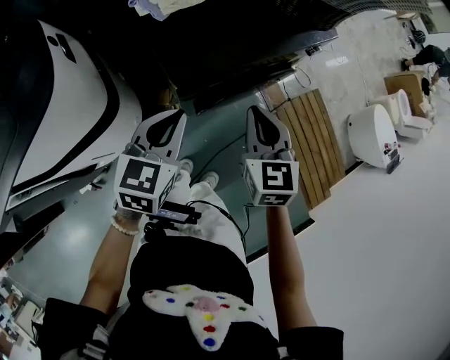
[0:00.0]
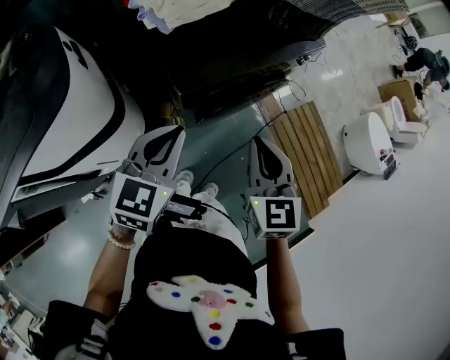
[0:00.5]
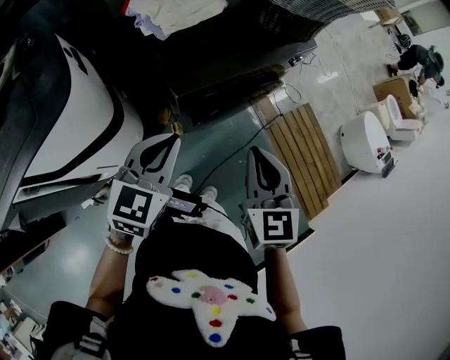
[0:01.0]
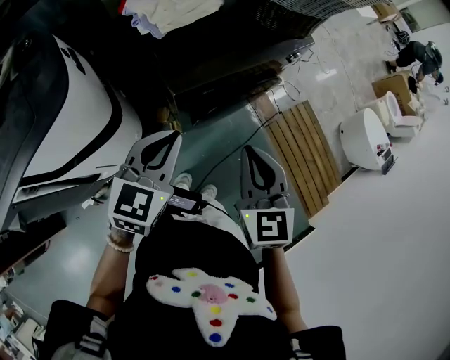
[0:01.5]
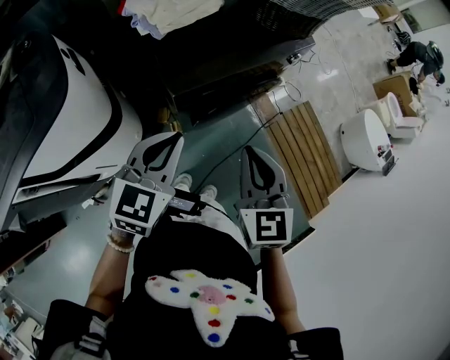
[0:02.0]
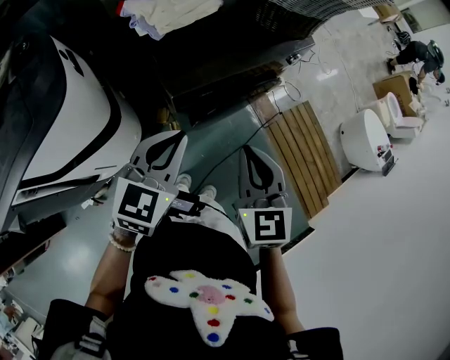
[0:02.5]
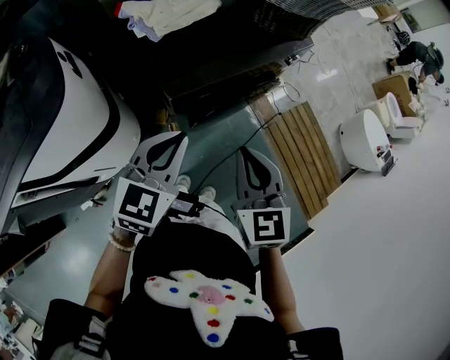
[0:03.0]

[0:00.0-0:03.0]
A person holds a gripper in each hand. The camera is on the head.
0:00.0 to 0:01.5: The right gripper is displaced backward and upward by about 15 cm. Meanwhile the left gripper goes approximately 10 cm upward and backward.
0:01.5 to 0:03.0: There are only small adjustments of the grippers.

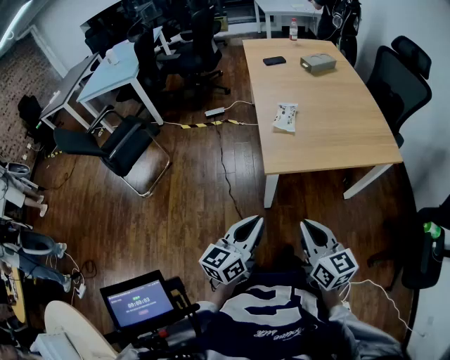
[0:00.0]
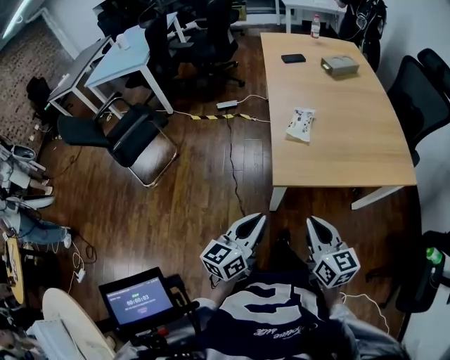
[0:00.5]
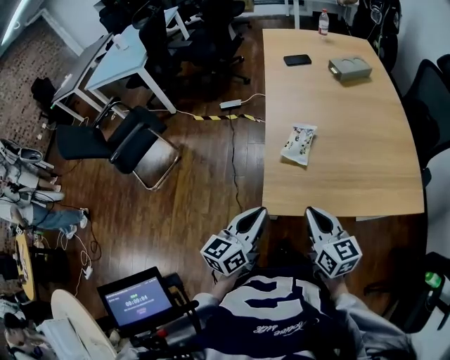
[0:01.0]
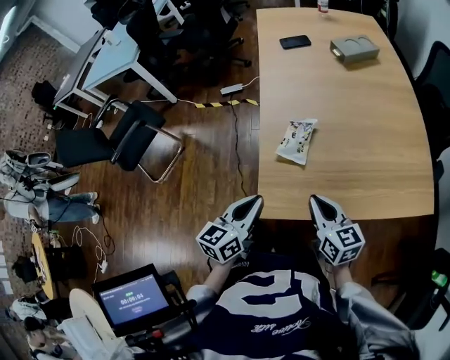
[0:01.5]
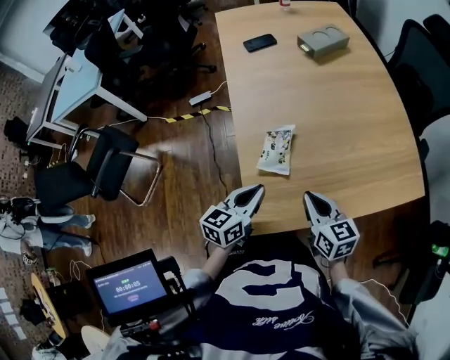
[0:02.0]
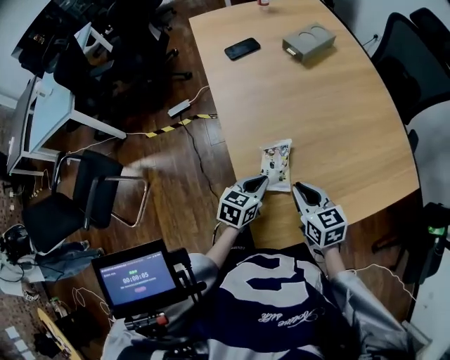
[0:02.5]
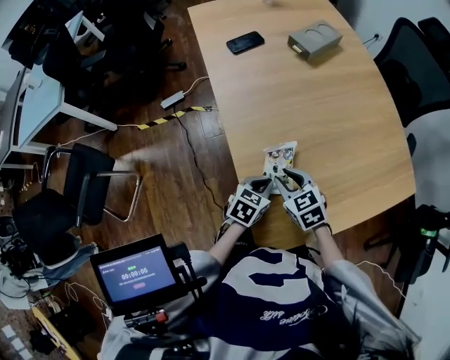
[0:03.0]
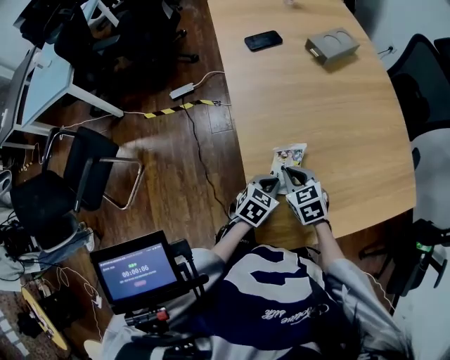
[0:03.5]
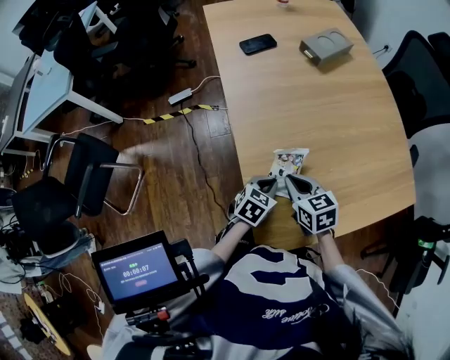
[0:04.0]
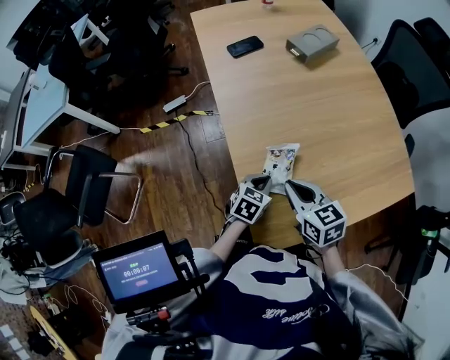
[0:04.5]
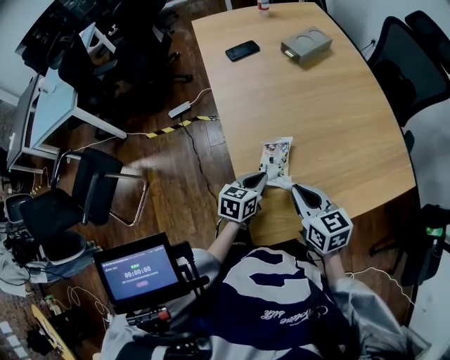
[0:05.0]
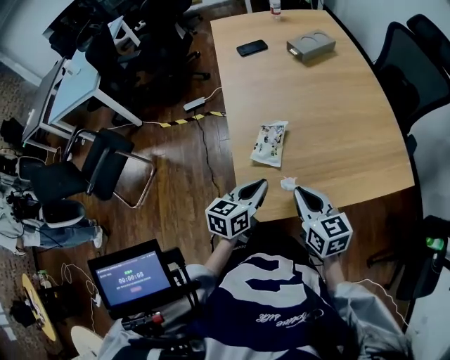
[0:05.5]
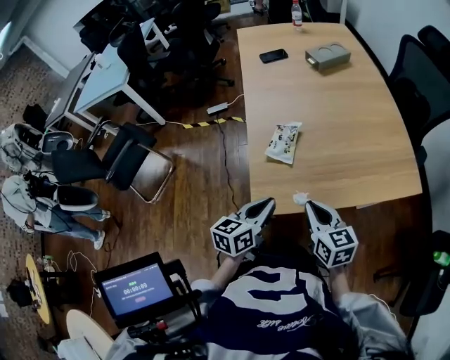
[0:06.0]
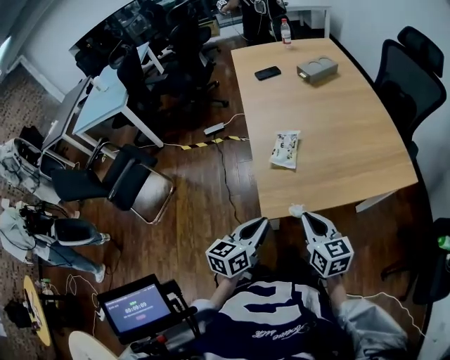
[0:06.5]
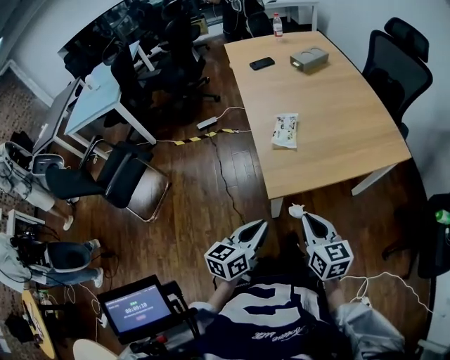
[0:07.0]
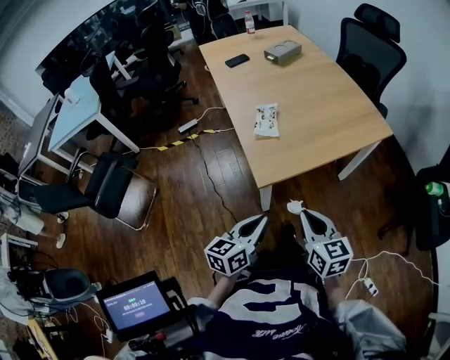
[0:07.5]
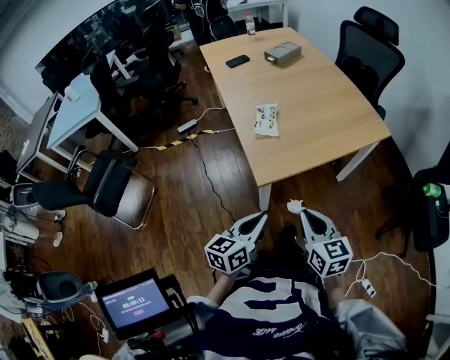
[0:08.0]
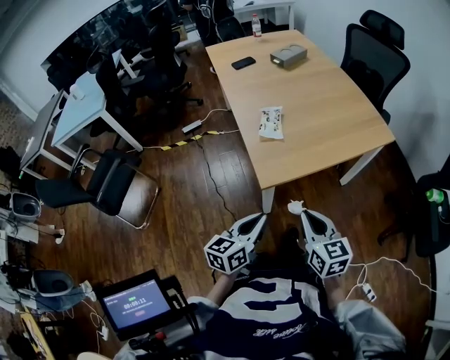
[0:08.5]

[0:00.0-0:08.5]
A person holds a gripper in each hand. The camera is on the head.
0:00.0 to 0:02.0: The two grippers travel together, forward, approximately 40 cm. The left gripper rotates about 20 degrees.
0:02.0 to 0:04.0: The left gripper moves downward and forward, about 15 cm, and turns by roughly 30 degrees. Meanwhile the right gripper heads forward and to the left, covering about 15 cm, and opens, then closes again.
0:04.0 to 0:06.5: The right gripper travels backward by approximately 30 cm. The left gripper moves backward and upward, approximately 35 cm, and rotates approximately 40 degrees.
0:06.5 to 0:08.5: The grippers both shift backward by some 15 cm.

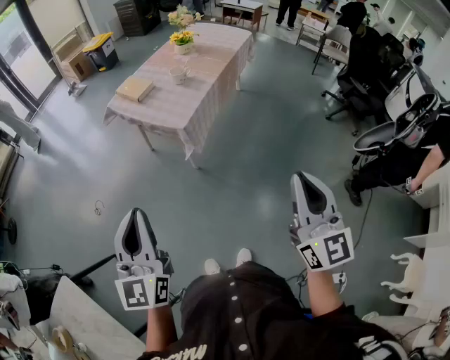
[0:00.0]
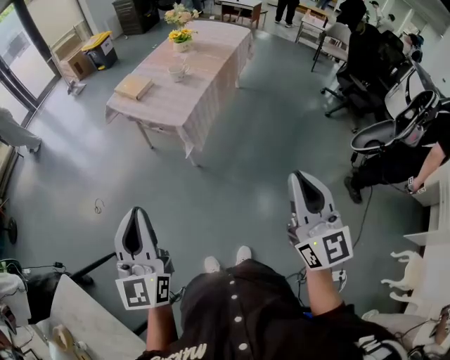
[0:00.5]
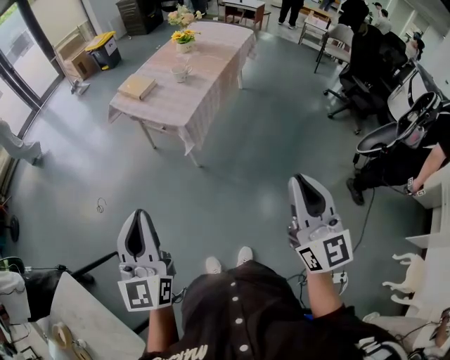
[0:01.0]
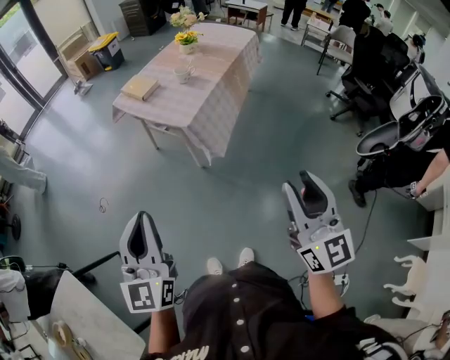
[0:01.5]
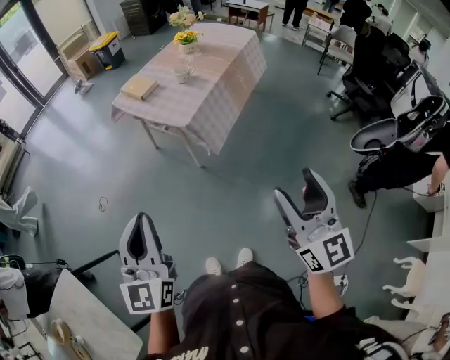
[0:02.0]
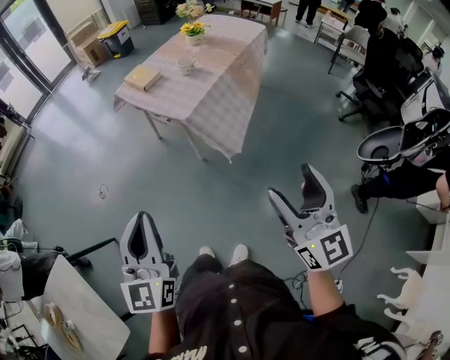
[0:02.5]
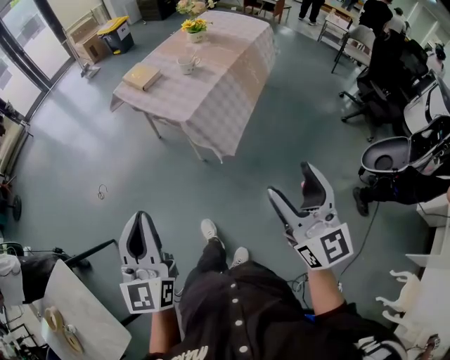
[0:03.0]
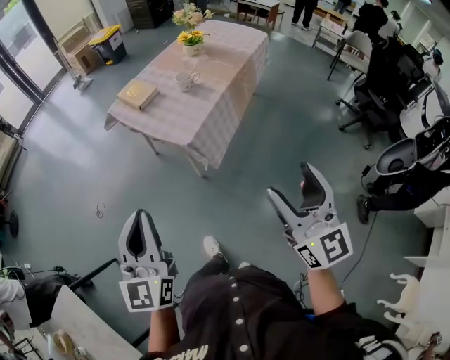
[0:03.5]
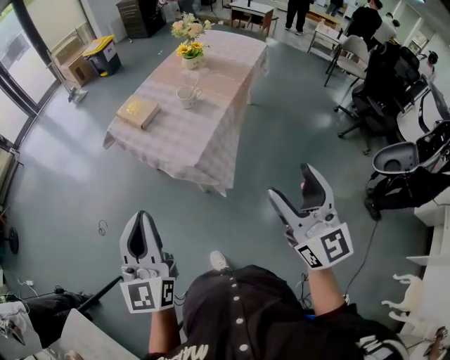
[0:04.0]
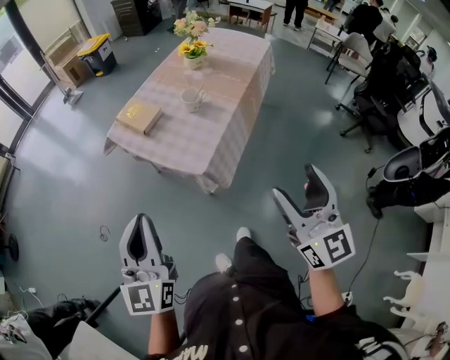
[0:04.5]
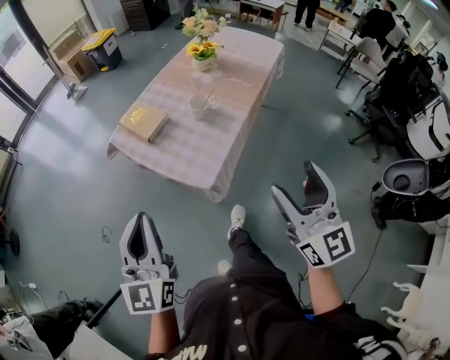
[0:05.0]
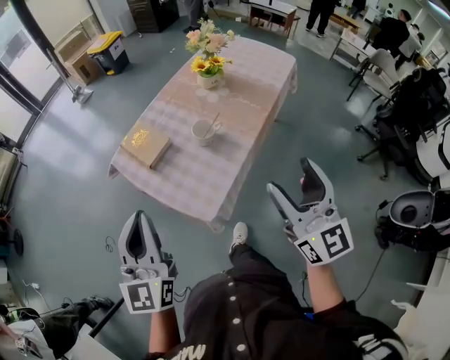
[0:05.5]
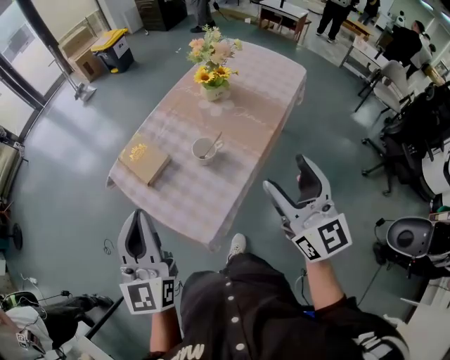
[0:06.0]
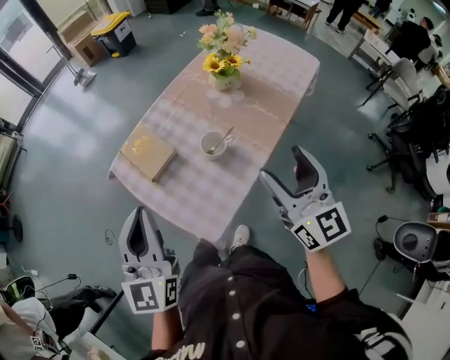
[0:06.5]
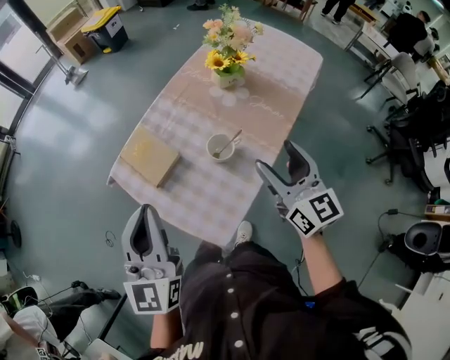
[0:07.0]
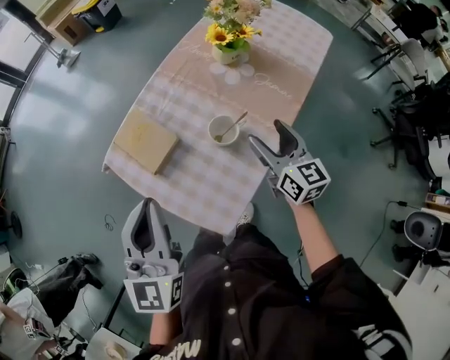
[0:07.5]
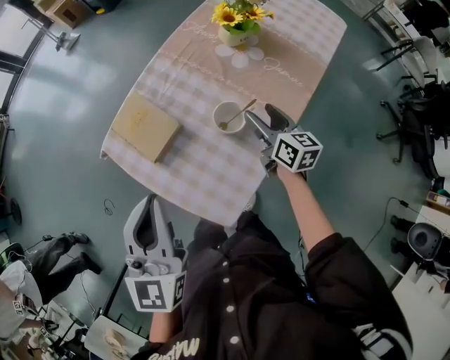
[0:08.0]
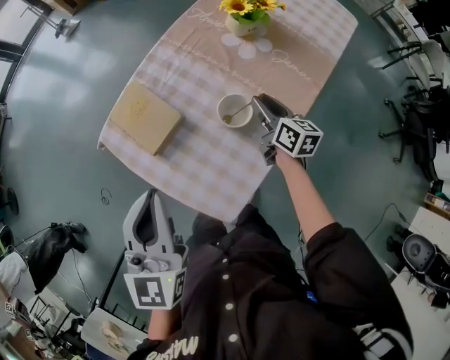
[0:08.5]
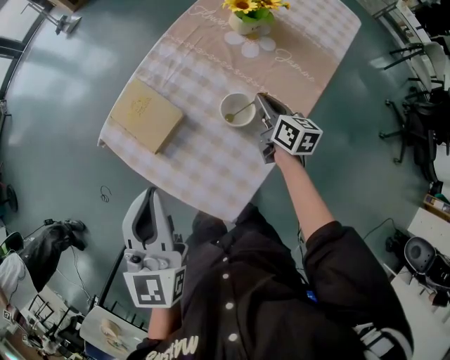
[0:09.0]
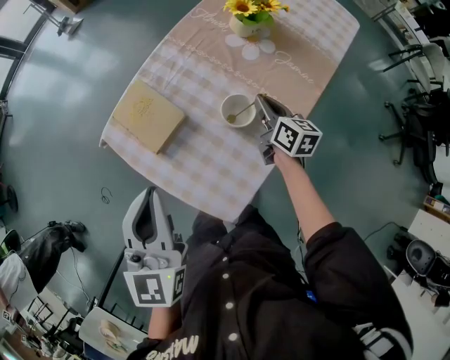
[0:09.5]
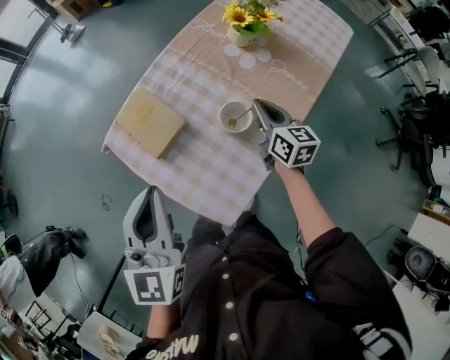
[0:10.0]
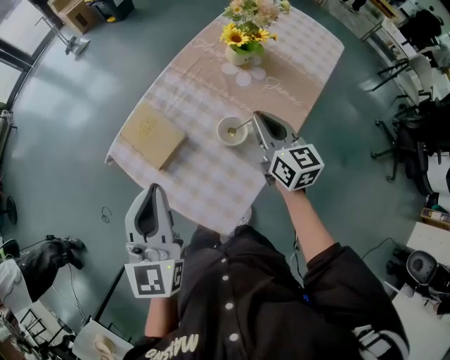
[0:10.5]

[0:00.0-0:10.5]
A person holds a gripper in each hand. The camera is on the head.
0:00.0 to 0:02.0: The right gripper opens up.
0:02.0 to 0:04.0: Both grippers move forward, approximately 25 cm.
0:04.0 to 0:06.5: Both grippers are carried forward, approximately 50 cm.
0:06.5 to 0:08.5: The right gripper is displaced downward and forward by approximately 35 cm, swivels some 40 degrees, and closes. Meanwhile the left gripper travels forward and downward by about 15 cm.
0:08.5 to 0:10.5: The right gripper shifts approximately 15 cm upward, changes its angle by approximately 20 degrees, and closes its fingers.

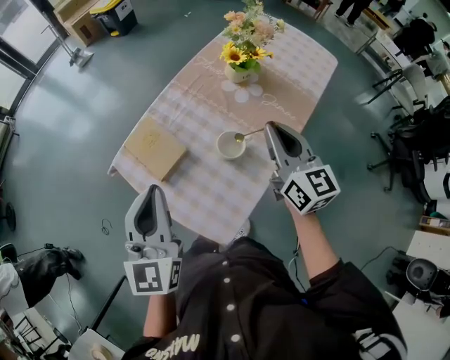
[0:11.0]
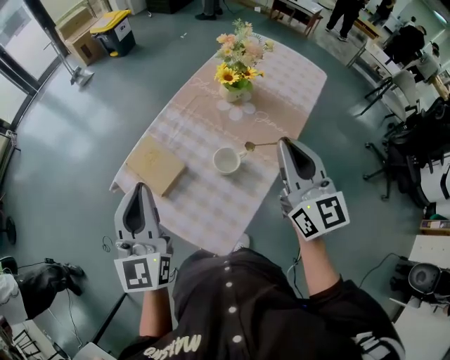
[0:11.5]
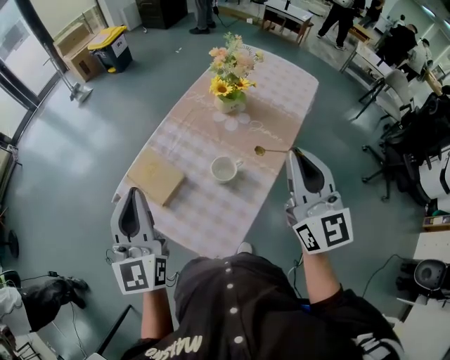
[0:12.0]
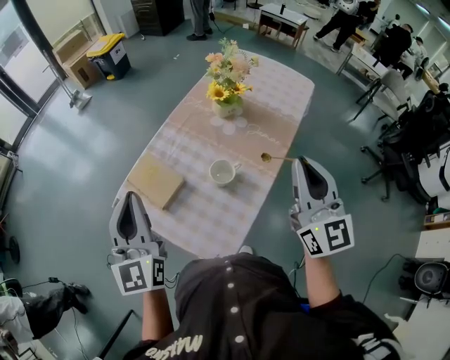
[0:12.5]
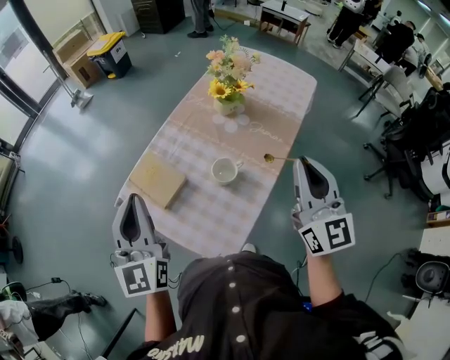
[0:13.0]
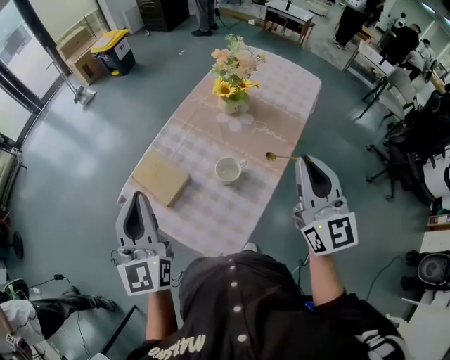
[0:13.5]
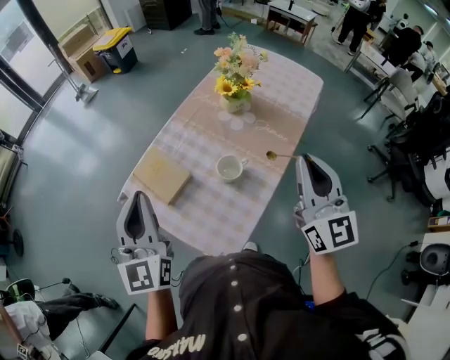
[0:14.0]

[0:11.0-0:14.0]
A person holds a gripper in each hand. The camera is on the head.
0:11.0 to 0:12.5: The left gripper shifts about 5 cm upward. Meanwhile the right gripper goes about 15 cm upward, backward and to the right, and rotates approximately 20 degrees.
0:12.5 to 0:14.0: The grippers make only small movements.

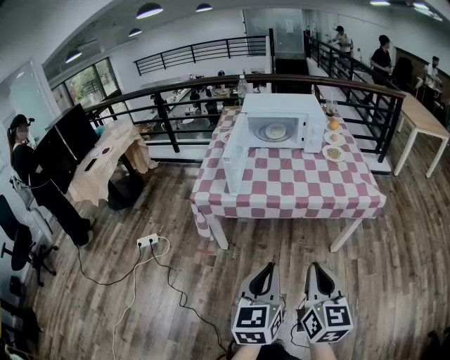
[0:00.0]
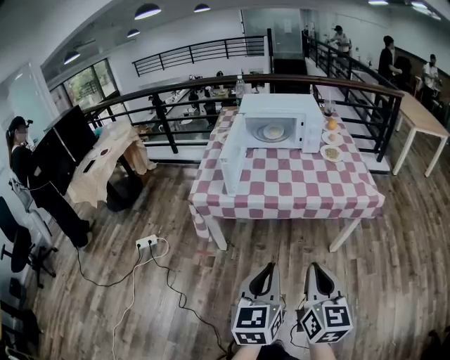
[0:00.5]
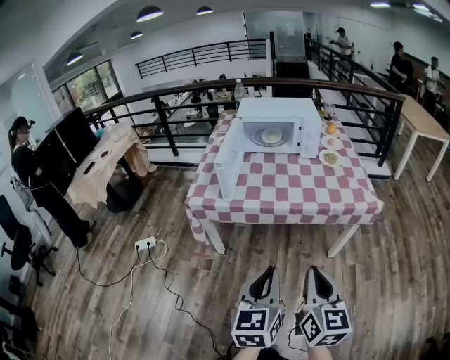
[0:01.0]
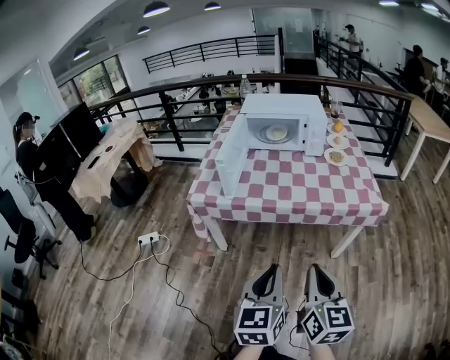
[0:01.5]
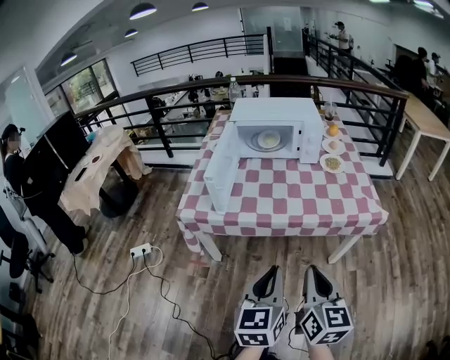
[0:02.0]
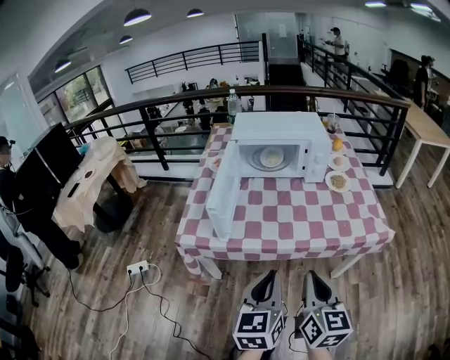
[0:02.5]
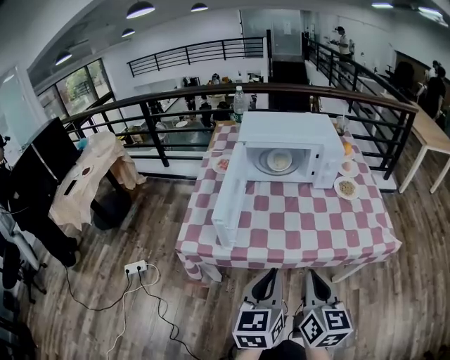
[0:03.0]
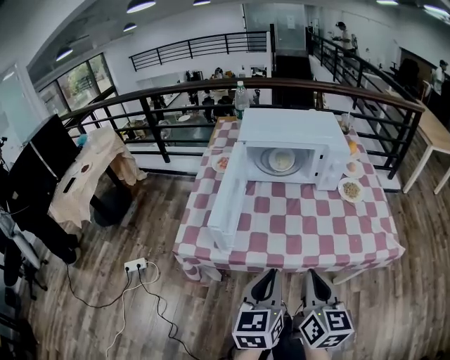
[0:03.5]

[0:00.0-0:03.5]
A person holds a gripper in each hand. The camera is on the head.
0:00.0 to 0:02.0: The grippers both shift forward by approximately 10 cm.
0:02.0 to 0:03.5: The grippers both shift forward by about 20 cm.
